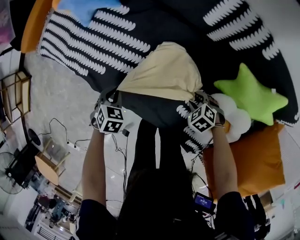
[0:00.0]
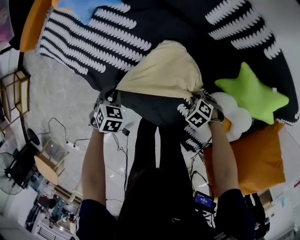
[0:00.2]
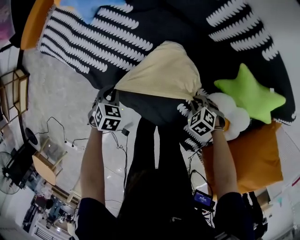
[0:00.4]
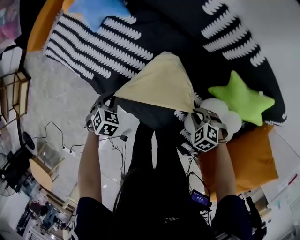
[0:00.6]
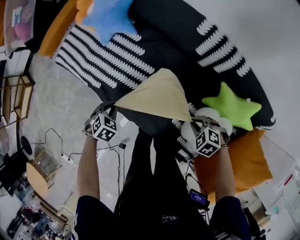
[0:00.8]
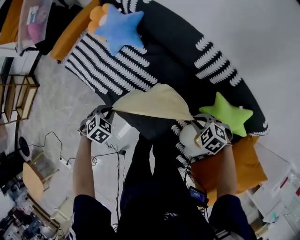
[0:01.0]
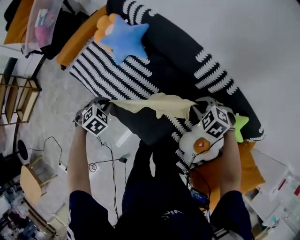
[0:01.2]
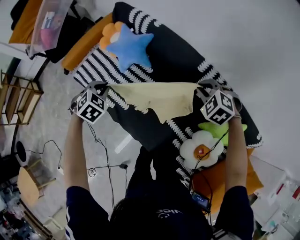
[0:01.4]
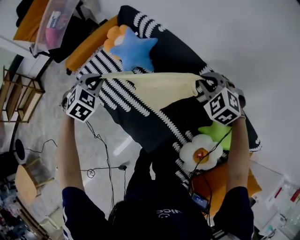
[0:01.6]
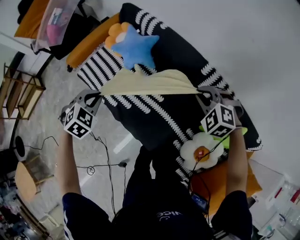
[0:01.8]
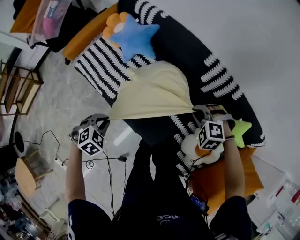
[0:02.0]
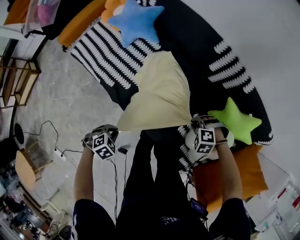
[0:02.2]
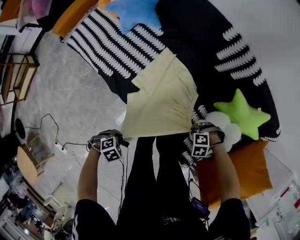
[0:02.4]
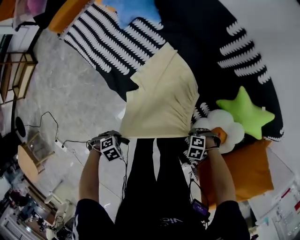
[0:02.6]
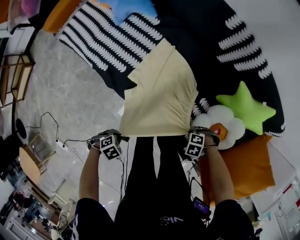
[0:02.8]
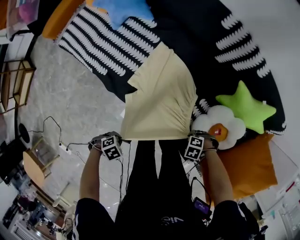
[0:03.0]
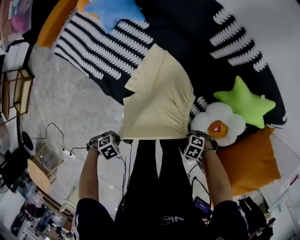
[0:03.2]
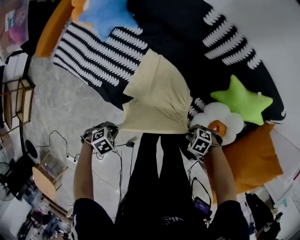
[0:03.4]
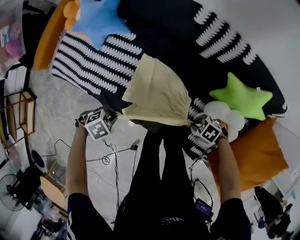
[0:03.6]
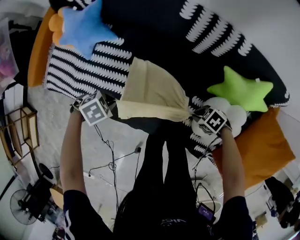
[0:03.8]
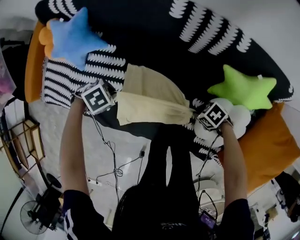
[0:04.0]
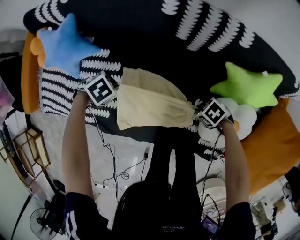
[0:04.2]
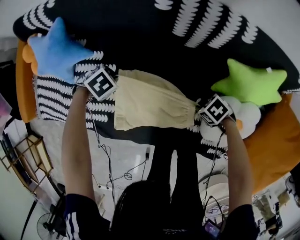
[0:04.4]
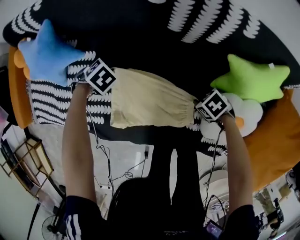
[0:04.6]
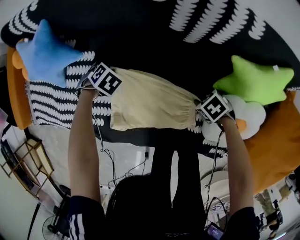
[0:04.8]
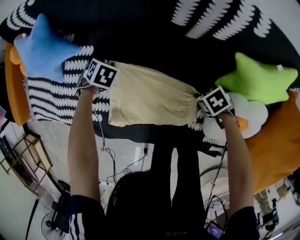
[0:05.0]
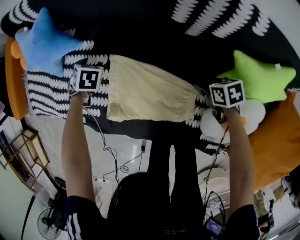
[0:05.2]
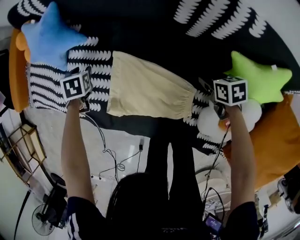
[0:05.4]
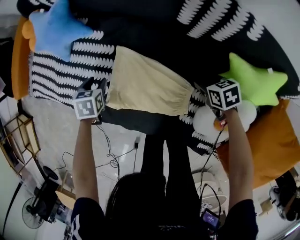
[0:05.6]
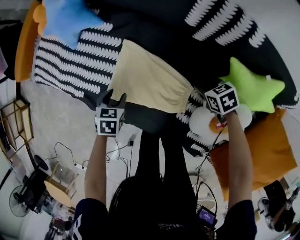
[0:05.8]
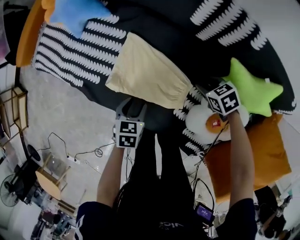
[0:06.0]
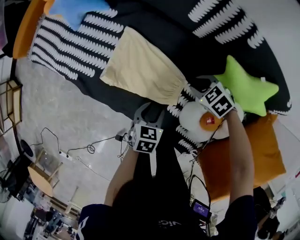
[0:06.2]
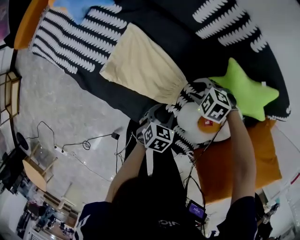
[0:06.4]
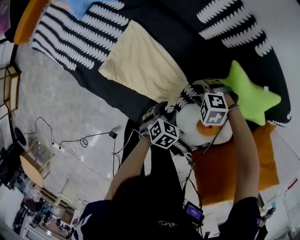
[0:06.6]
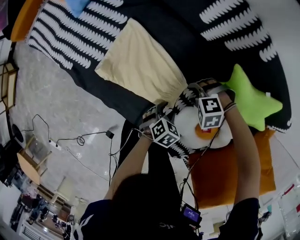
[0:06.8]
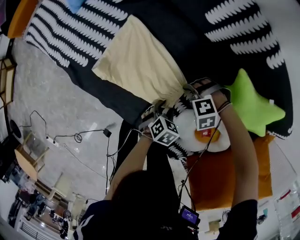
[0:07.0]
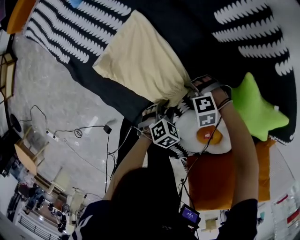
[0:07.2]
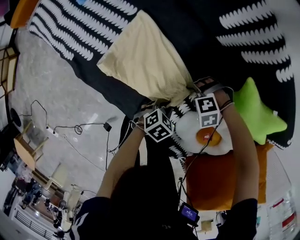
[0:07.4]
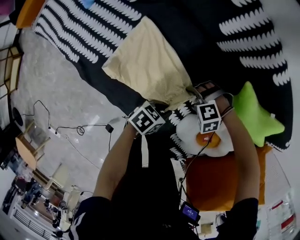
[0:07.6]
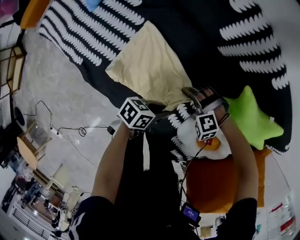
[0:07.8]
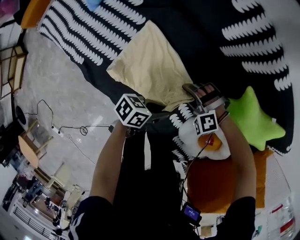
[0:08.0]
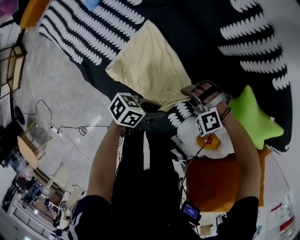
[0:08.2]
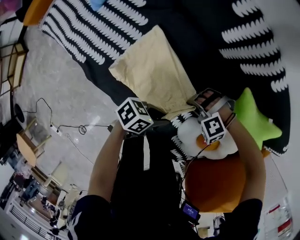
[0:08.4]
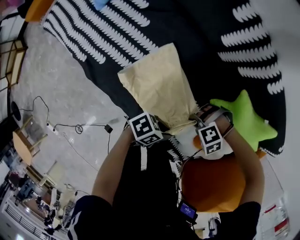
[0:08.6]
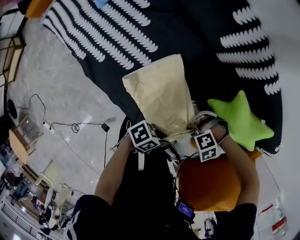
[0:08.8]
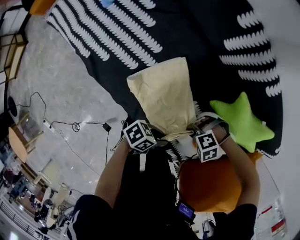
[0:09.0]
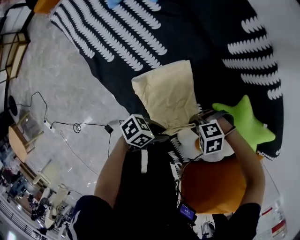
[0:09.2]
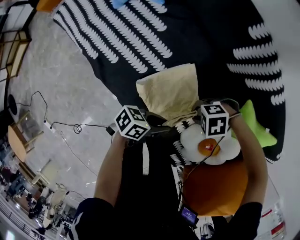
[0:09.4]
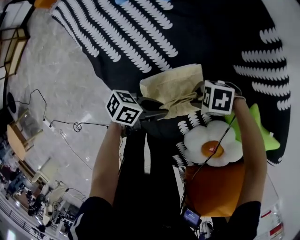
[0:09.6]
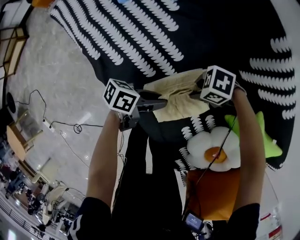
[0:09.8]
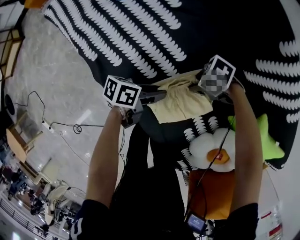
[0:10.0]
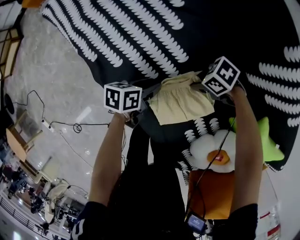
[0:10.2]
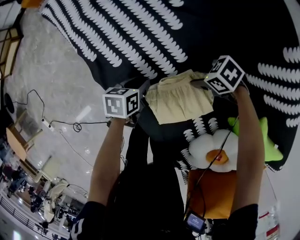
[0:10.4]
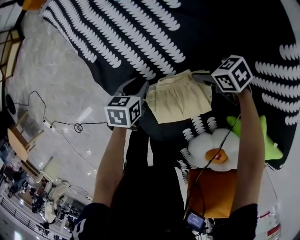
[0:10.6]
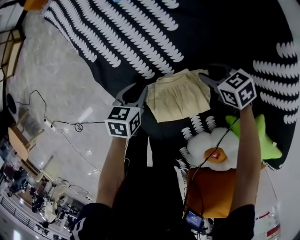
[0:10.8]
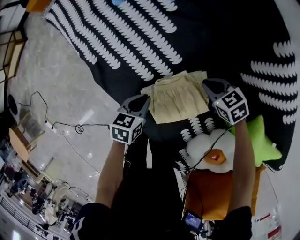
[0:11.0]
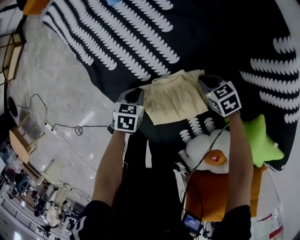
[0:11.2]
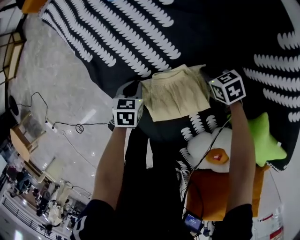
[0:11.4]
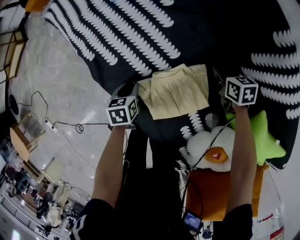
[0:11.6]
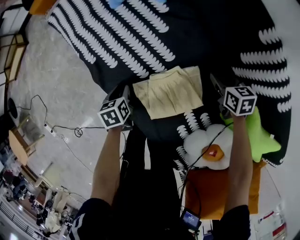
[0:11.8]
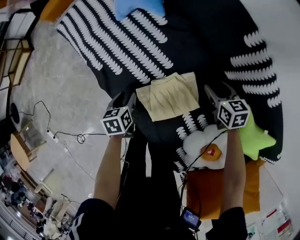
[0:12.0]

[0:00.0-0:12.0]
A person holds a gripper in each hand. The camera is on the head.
0:00.0 to 0:01.6: Both grippers move upward, about 40 cm. The left gripper turns by approximately 30 degrees, while the right gripper swivels approximately 50 degrees, and closes its fingers.
0:01.6 to 0:03.0: Both grippers are carried roughly 40 cm. The right gripper turns by about 60 degrees; the left gripper rotates roughly 60 degrees.
0:03.0 to 0:04.4: The left gripper ends up some 50 cm from where it was, and changes its angle by about 30 degrees. The right gripper ends up about 20 cm from where it was, and rolls clockwise, seen from behind, by approximately 60 degrees.
0:04.4 to 0:06.0: The left gripper shifts by approximately 25 cm, rotates around the line of its fingers by about 60 degrees, counterclockwise from behind, and opens. The right gripper moves approximately 10 cm, and turns by about 20 degrees.
0:06.0 to 0:07.6: The left gripper changes place by about 15 cm, rotates about 40 degrees, and closes up; the right gripper is displaced downward by approximately 10 cm, rotates around the line of its fingers by approximately 80 degrees, counterclockwise from behind, and opens.
0:07.6 to 0:09.0: The right gripper moves some 15 cm, and closes up, while the left gripper moves about 10 cm, and rotates roughly 20 degrees.
0:09.0 to 0:10.4: The left gripper changes place by approximately 35 cm, and tilts its fingers about 30 degrees downward. Meanwhile the right gripper ends up some 30 cm from where it was, rolls clockwise, seen from behind, by roughly 50 degrees, and opens.
0:10.4 to 0:12.0: The left gripper goes up and down, some 10 cm each way, reversing 2 times; the right gripper goes up and down, roughly 15 cm each way, reversing 2 times, changes its angle by roughly 60 degrees, and closes, then opens again.

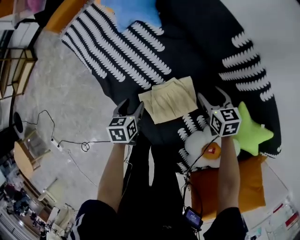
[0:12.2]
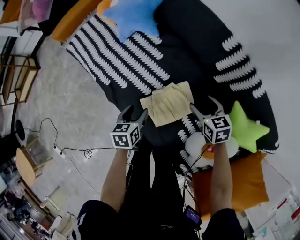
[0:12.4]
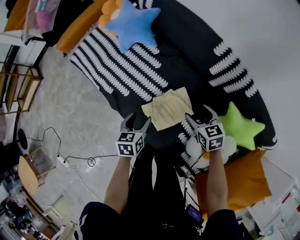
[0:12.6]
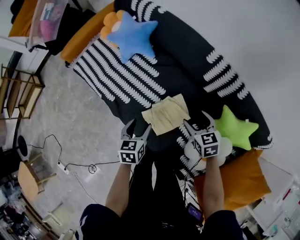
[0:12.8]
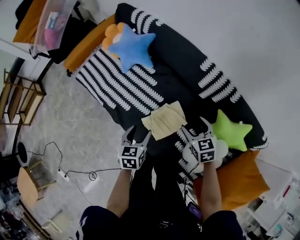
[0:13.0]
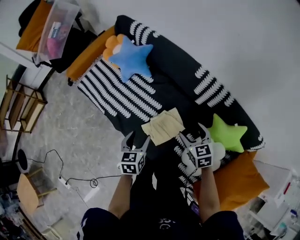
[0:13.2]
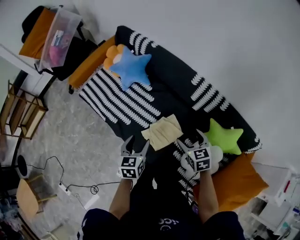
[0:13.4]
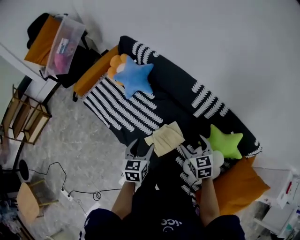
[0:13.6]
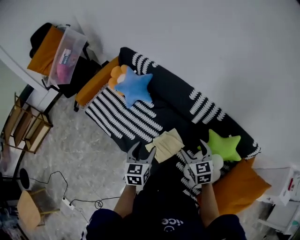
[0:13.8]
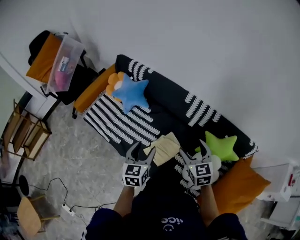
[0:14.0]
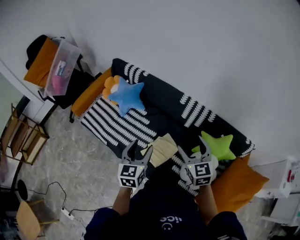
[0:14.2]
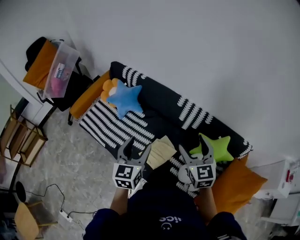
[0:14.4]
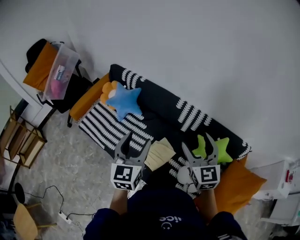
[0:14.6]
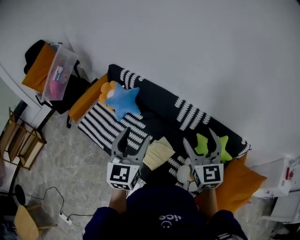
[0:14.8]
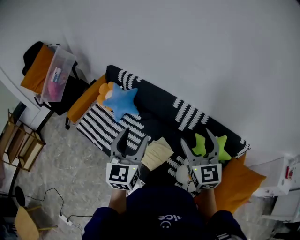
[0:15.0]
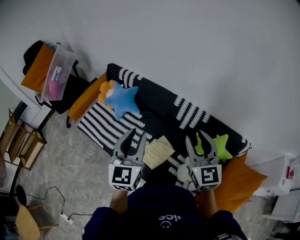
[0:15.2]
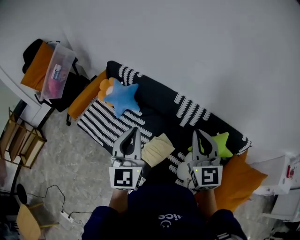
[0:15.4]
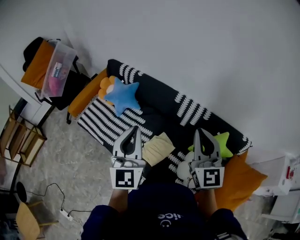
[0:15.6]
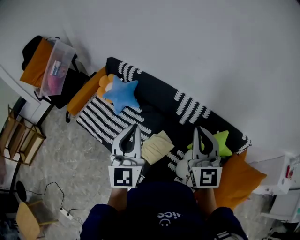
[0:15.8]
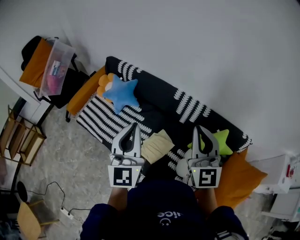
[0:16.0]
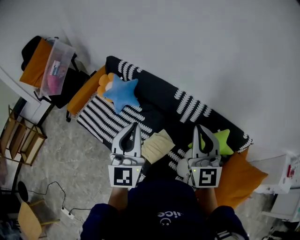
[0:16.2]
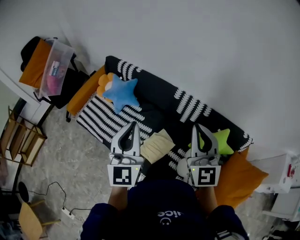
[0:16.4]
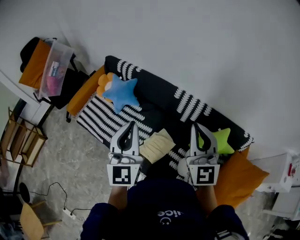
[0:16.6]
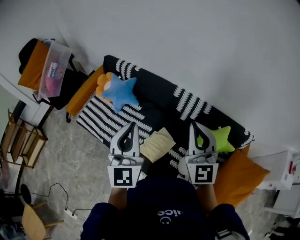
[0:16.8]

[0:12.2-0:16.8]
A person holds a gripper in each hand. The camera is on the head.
0:12.2 to 0:13.8: The right gripper heads upward and backward, covering about 35 cm, and turns by roughly 20 degrees; the left gripper goes approximately 35 cm upward, and changes its angle by roughly 30 degrees.
0:13.8 to 0:15.2: The grippers both shift upward by approximately 20 cm. The right gripper turns by some 30 degrees, and closes its fingers. Meanwhile the left gripper swivels some 30 degrees, and closes its fingers.
0:15.2 to 0:16.8: The right gripper closes its fingers. Meanwhile the left gripper closes its fingers.

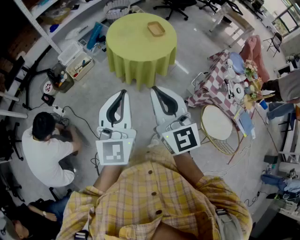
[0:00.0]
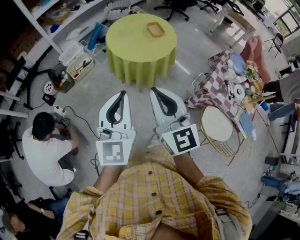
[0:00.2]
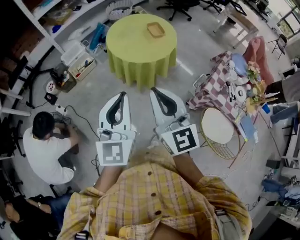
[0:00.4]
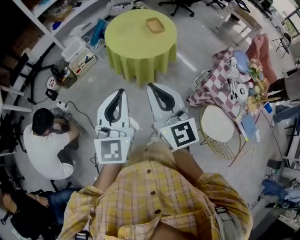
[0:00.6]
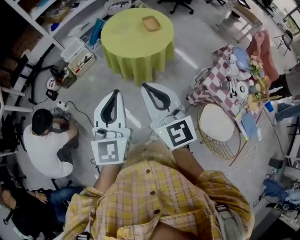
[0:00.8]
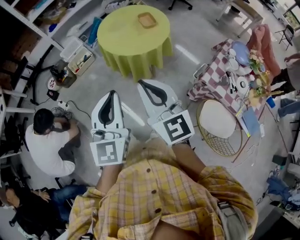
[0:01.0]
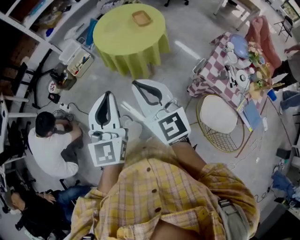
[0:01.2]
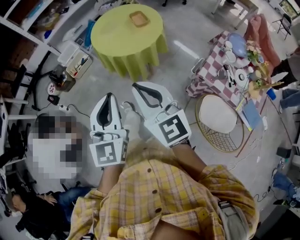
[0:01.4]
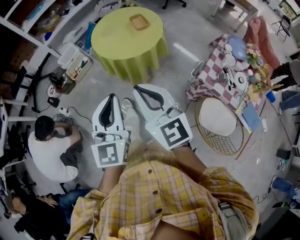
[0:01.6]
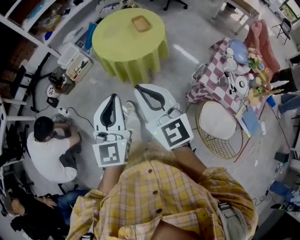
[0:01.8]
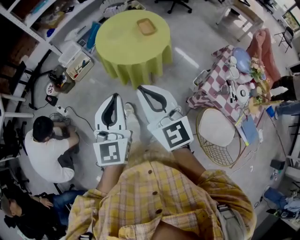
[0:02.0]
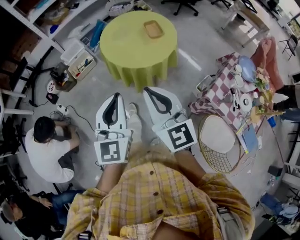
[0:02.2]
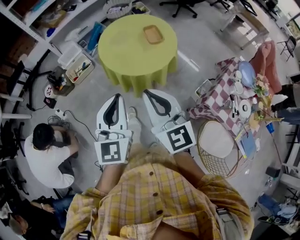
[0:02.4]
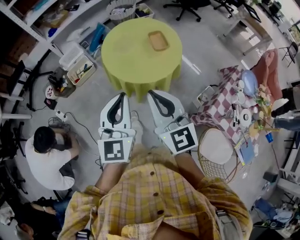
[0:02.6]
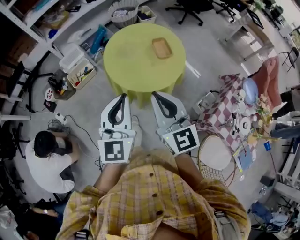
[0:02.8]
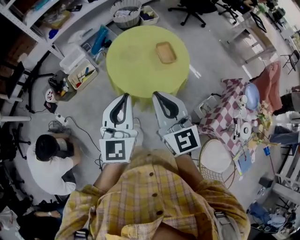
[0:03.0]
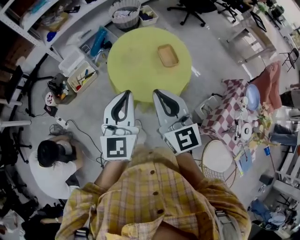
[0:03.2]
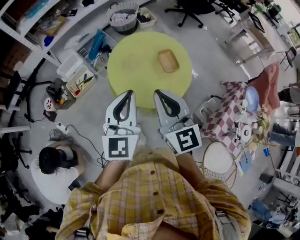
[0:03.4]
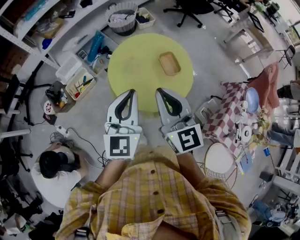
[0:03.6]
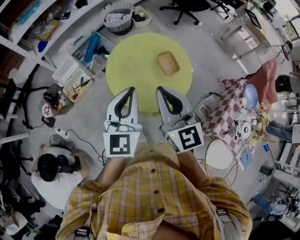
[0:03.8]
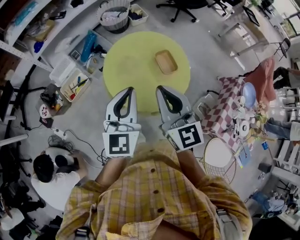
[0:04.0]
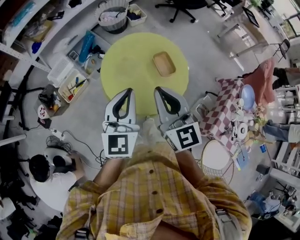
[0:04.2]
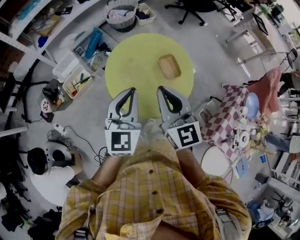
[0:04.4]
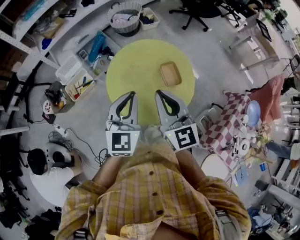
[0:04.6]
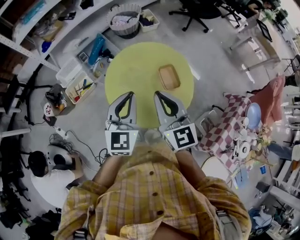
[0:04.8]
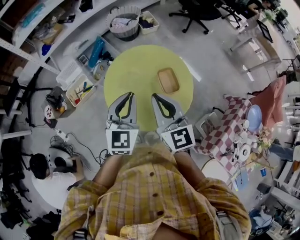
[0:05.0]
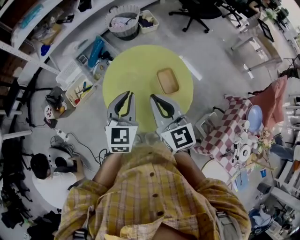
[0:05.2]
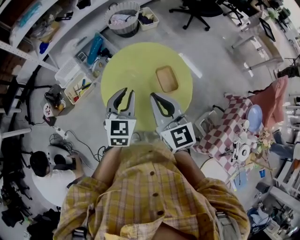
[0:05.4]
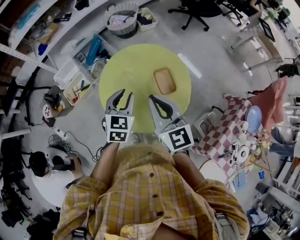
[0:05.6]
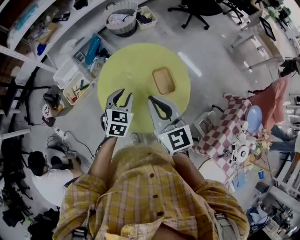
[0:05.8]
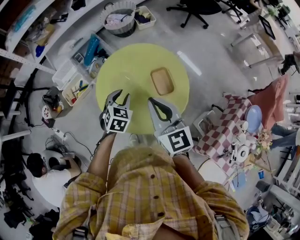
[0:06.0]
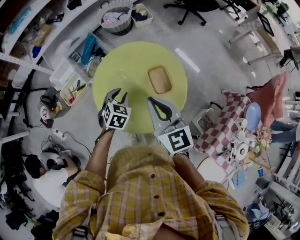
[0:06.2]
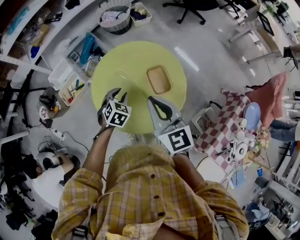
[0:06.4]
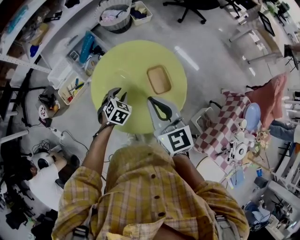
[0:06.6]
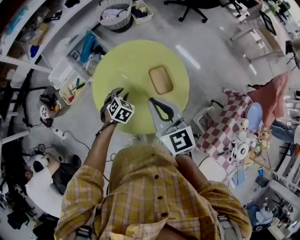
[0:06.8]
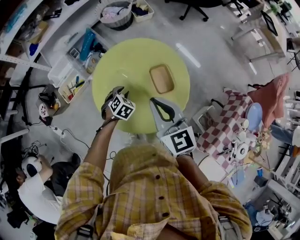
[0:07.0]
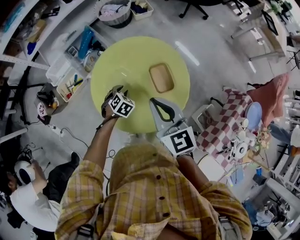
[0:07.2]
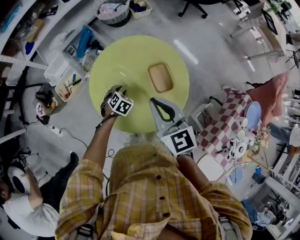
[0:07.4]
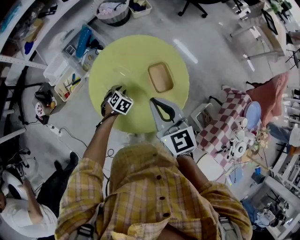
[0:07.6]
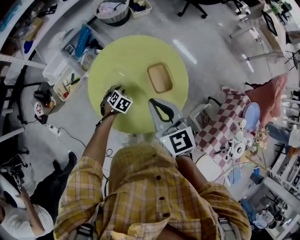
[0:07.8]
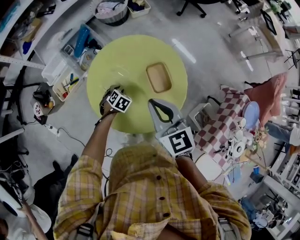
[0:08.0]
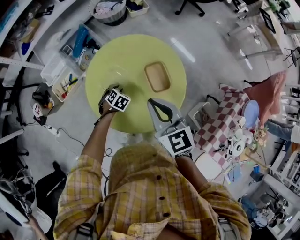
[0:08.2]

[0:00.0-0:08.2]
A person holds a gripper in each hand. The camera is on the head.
0:00.0 to 0:01.6: Both grippers move to the right, approximately 15 cm.
0:01.6 to 0:03.2: The grippers both shift forward by approximately 40 cm.
0:03.2 to 0:05.0: Both grippers move forward, roughly 20 cm.
0:05.0 to 0:06.6: The right gripper goes roughly 10 cm to the right and downward. Meanwhile the left gripper is displaced downward by about 25 cm, tilts its fingers approximately 40 degrees downward, and opens.
0:06.6 to 0:08.2: The left gripper shifts approximately 15 cm downward.
